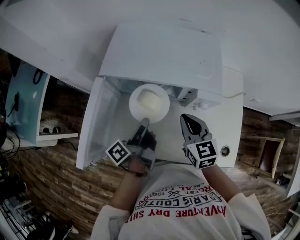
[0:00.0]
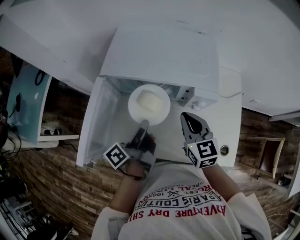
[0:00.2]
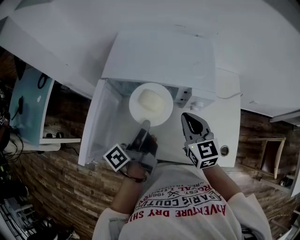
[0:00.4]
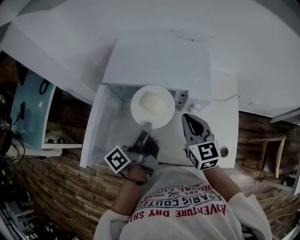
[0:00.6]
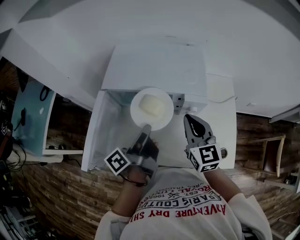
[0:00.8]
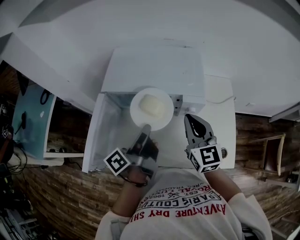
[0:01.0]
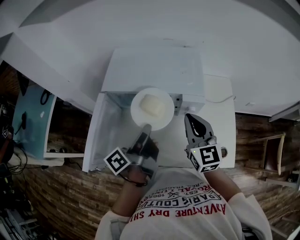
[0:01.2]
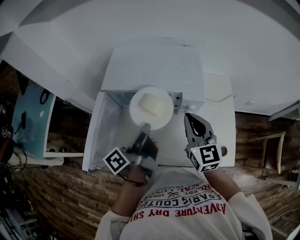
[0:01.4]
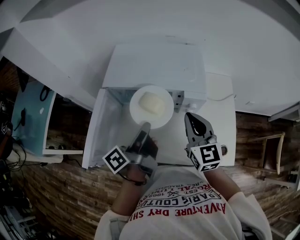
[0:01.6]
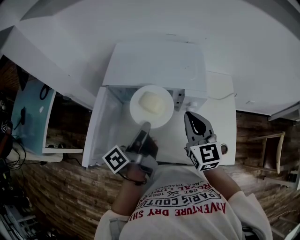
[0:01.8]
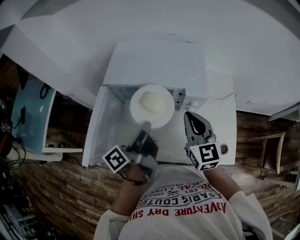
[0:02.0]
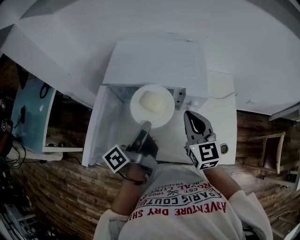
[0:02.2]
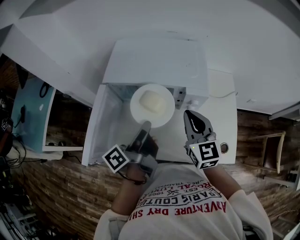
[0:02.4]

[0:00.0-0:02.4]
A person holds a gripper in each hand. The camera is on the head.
0:00.0 to 0:01.2: Both grippers move upward, approximately 10 cm.
0:01.2 to 0:02.4: There are only small adjustments of the grippers.

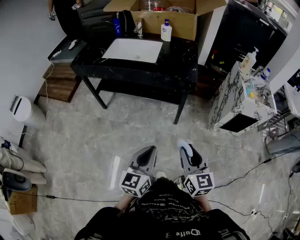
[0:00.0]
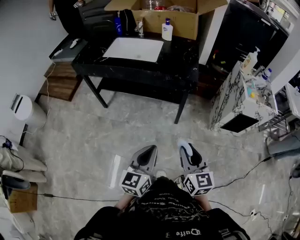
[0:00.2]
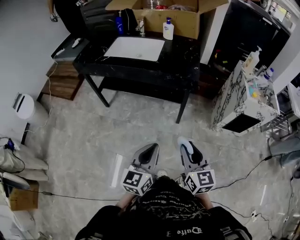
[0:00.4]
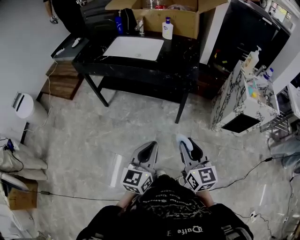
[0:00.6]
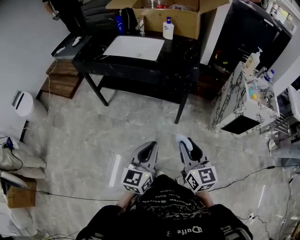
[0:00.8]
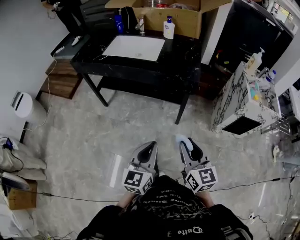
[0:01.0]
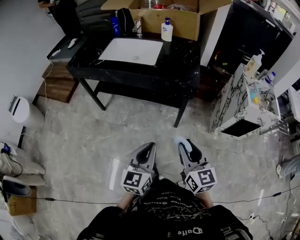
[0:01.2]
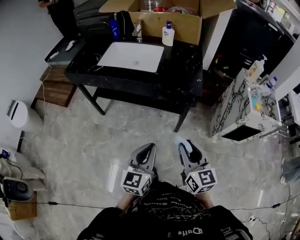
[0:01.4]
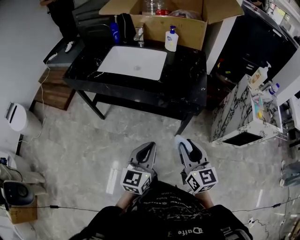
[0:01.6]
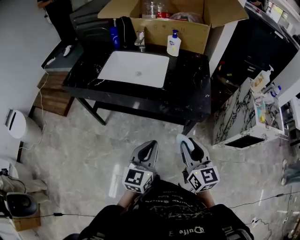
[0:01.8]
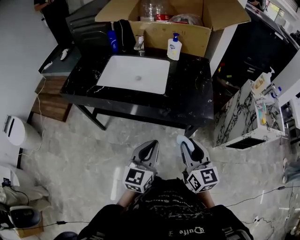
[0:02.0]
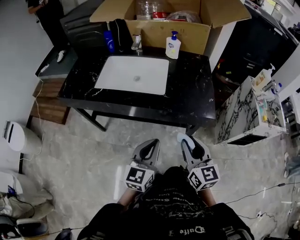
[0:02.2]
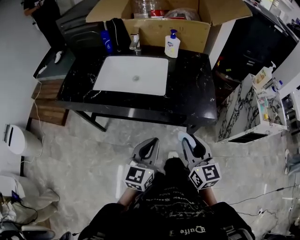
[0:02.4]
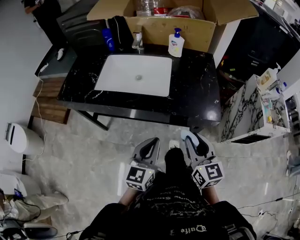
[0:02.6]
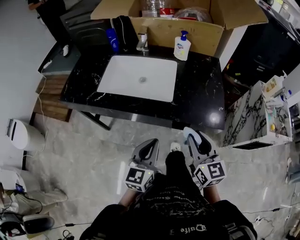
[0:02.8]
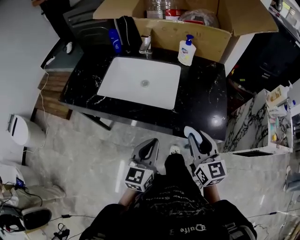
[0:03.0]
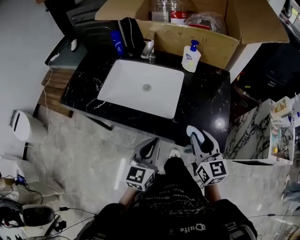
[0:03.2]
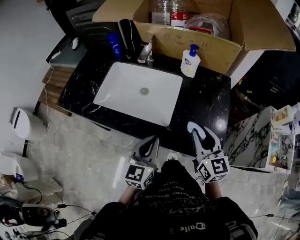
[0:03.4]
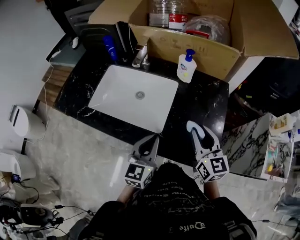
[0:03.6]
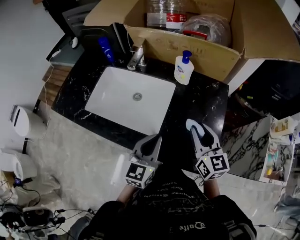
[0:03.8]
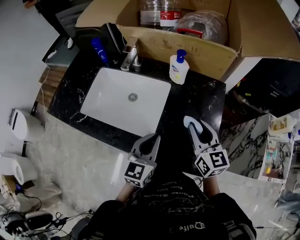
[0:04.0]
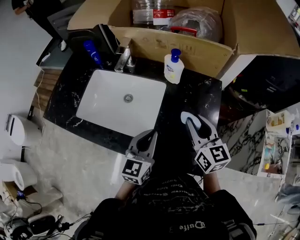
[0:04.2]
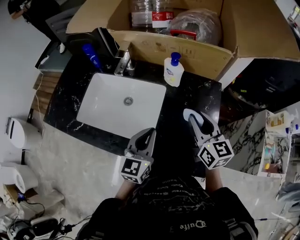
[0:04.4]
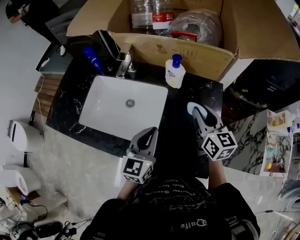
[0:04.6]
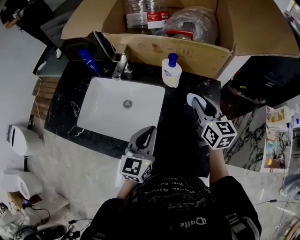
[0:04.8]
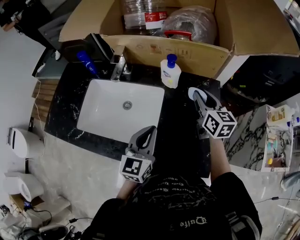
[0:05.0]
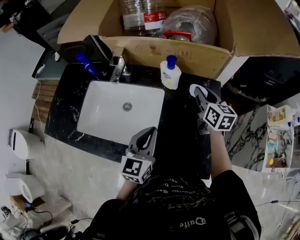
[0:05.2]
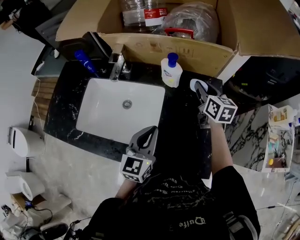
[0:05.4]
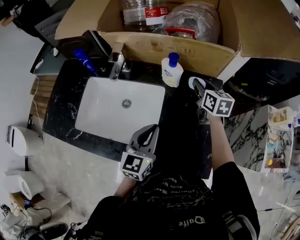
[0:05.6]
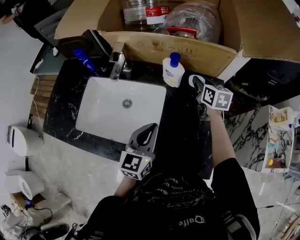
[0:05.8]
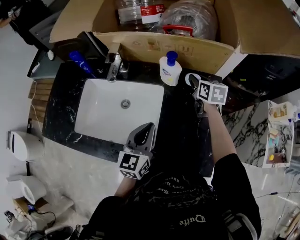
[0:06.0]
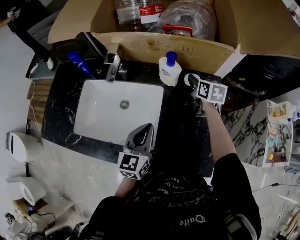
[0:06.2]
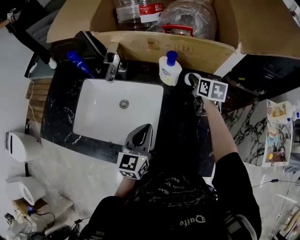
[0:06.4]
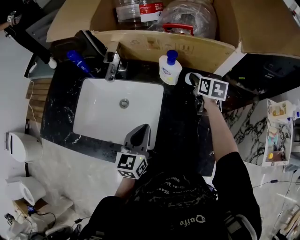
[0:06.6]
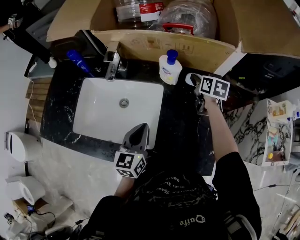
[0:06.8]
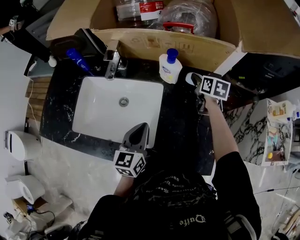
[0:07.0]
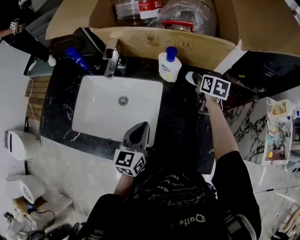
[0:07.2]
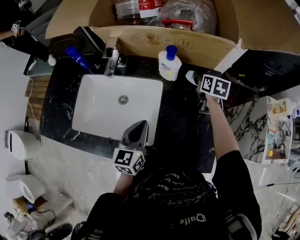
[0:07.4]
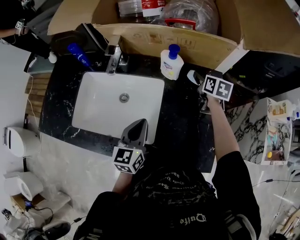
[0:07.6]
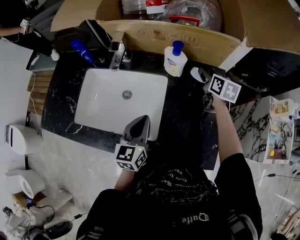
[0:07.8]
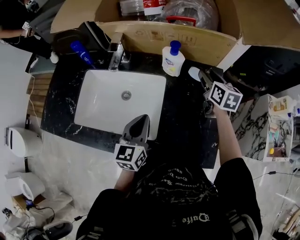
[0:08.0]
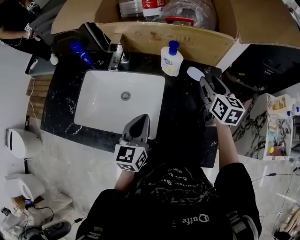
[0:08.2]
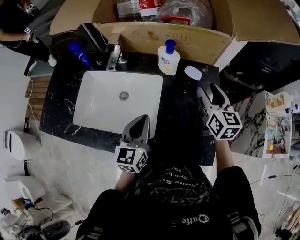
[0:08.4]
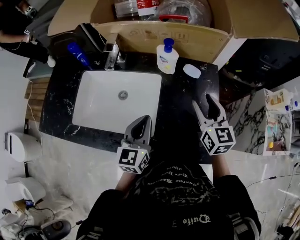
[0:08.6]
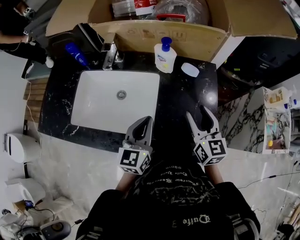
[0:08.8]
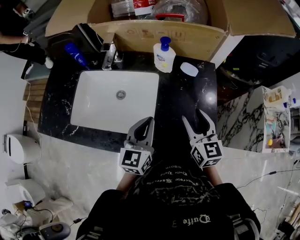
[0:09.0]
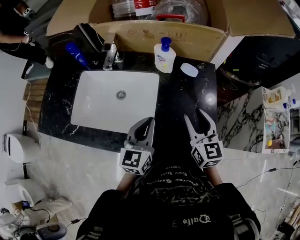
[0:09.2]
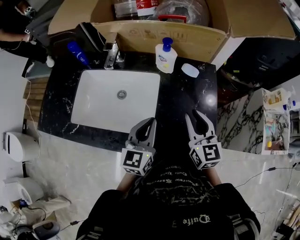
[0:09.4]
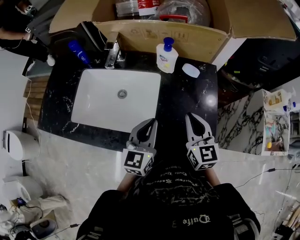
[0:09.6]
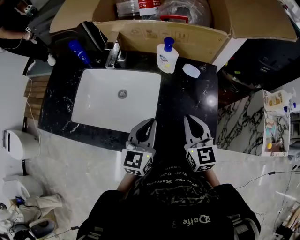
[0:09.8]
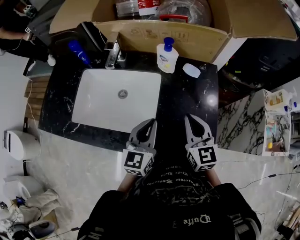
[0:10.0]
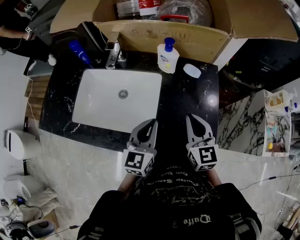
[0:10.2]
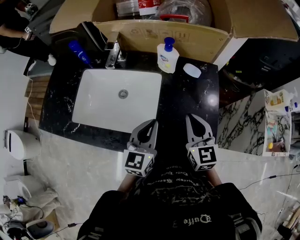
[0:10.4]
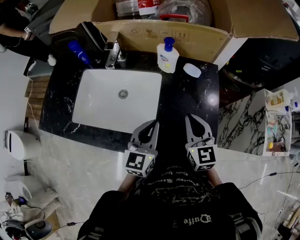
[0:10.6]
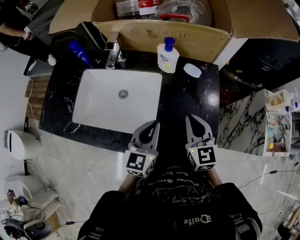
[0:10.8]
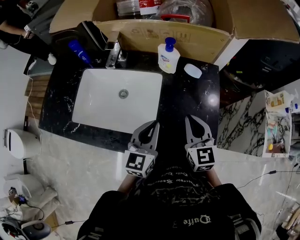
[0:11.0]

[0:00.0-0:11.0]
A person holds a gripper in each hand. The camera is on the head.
0:00.0 to 0:01.6: The two grippers go approximately 20 cm forward.
0:01.6 to 0:03.2: Both grippers travel together forward, about 30 cm.
0:03.2 to 0:04.8: The right gripper heads forward, covering some 25 cm, while the left gripper moves forward and to the right, about 20 cm.
0:04.8 to 0:06.2: The right gripper moves forward and downward, about 15 cm, and rotates about 20 degrees.
0:06.2 to 0:07.8: The right gripper opens up.
0:07.8 to 0:09.4: The right gripper is displaced backward by some 25 cm, rotates approximately 30 degrees, and closes. Meanwhile the left gripper moves about 5 cm.
0:09.4 to 0:11.0: The right gripper closes its fingers.

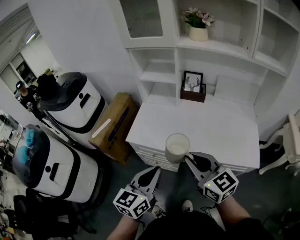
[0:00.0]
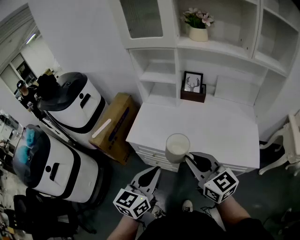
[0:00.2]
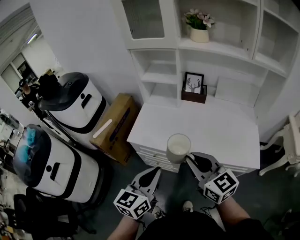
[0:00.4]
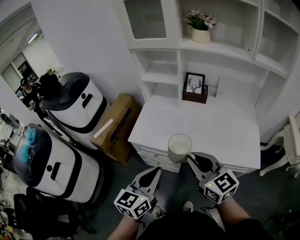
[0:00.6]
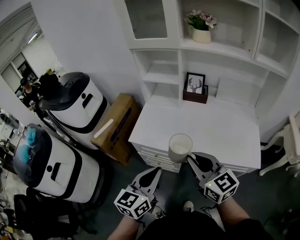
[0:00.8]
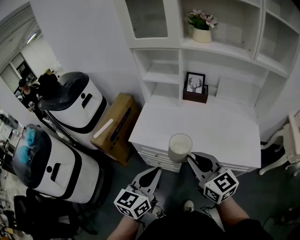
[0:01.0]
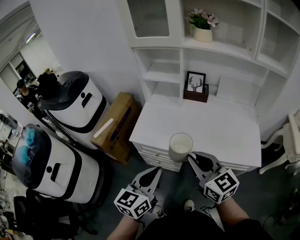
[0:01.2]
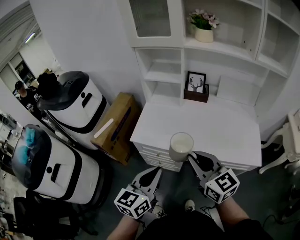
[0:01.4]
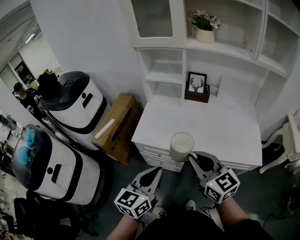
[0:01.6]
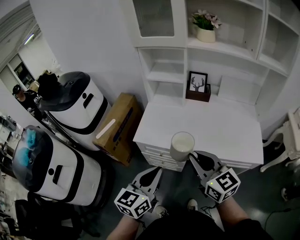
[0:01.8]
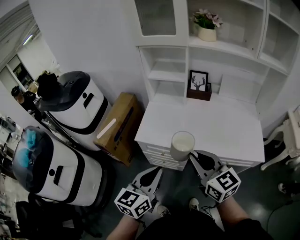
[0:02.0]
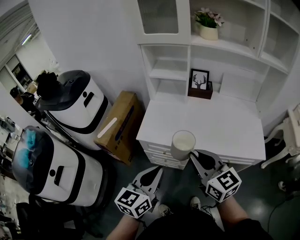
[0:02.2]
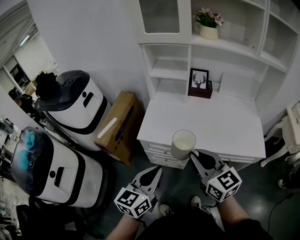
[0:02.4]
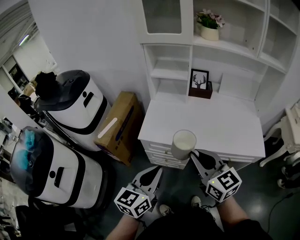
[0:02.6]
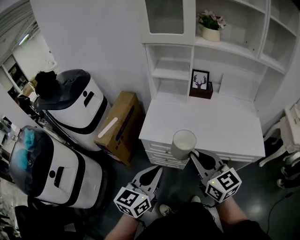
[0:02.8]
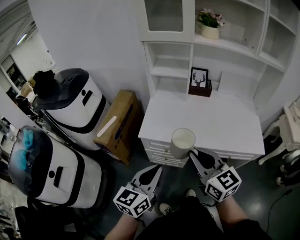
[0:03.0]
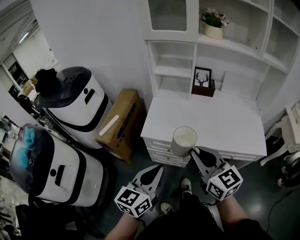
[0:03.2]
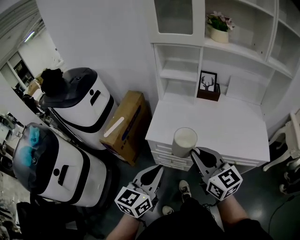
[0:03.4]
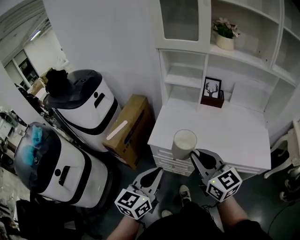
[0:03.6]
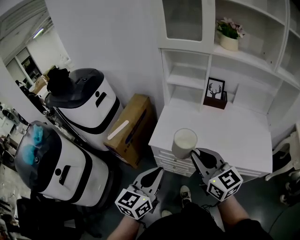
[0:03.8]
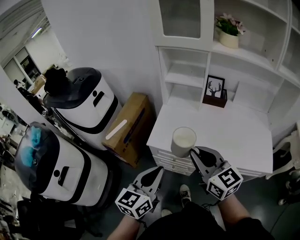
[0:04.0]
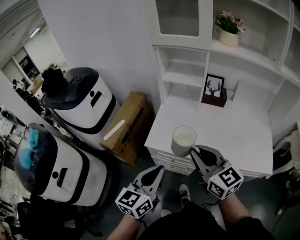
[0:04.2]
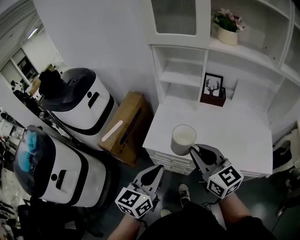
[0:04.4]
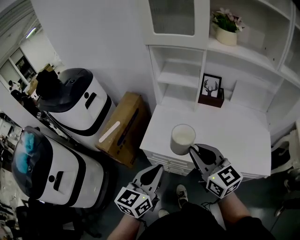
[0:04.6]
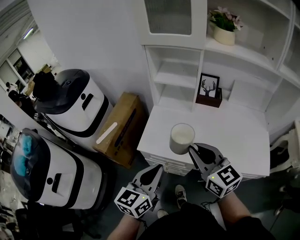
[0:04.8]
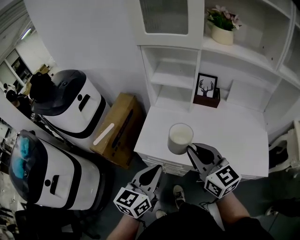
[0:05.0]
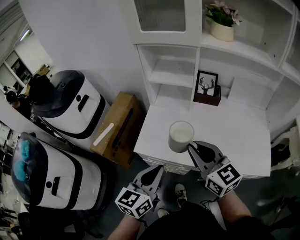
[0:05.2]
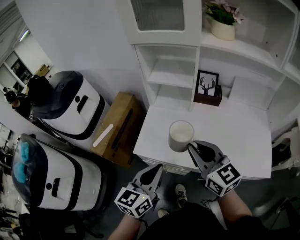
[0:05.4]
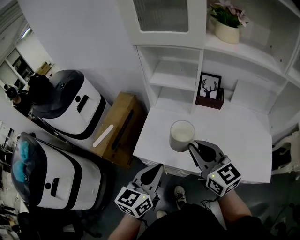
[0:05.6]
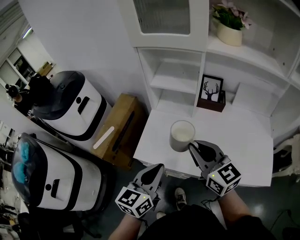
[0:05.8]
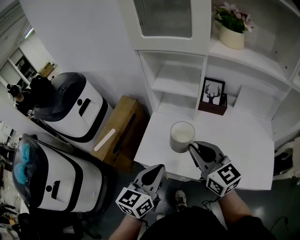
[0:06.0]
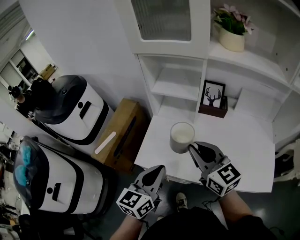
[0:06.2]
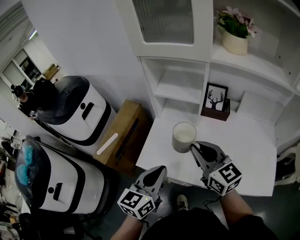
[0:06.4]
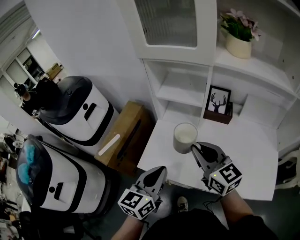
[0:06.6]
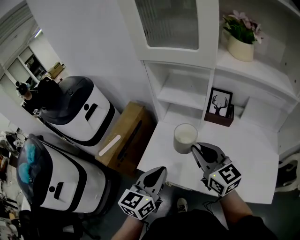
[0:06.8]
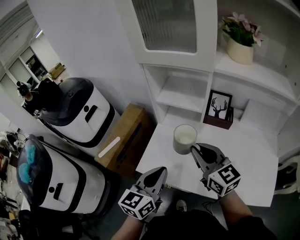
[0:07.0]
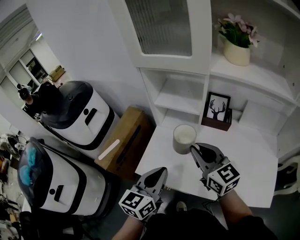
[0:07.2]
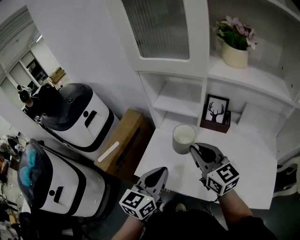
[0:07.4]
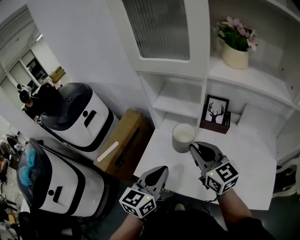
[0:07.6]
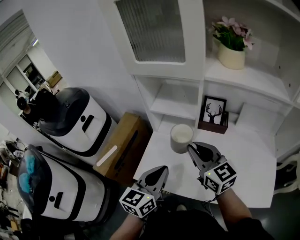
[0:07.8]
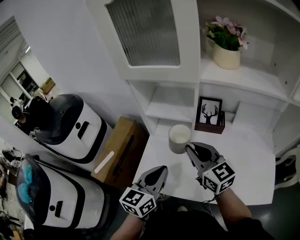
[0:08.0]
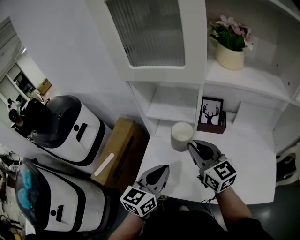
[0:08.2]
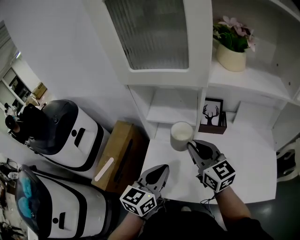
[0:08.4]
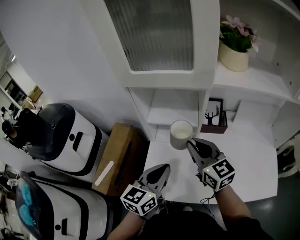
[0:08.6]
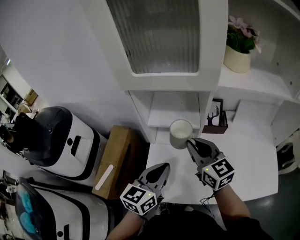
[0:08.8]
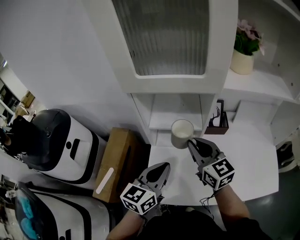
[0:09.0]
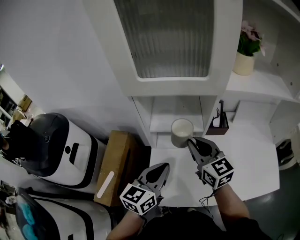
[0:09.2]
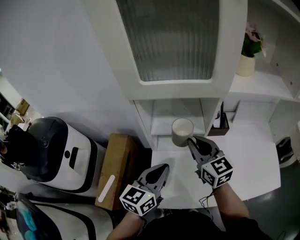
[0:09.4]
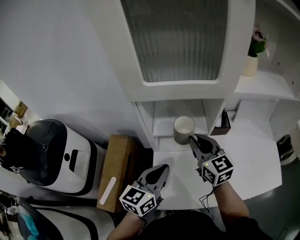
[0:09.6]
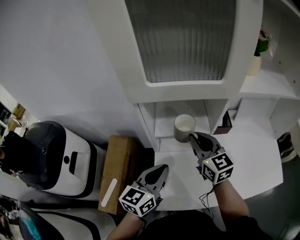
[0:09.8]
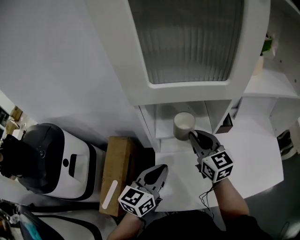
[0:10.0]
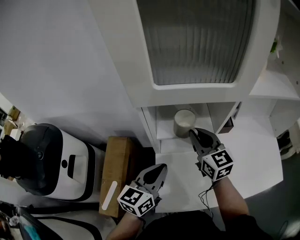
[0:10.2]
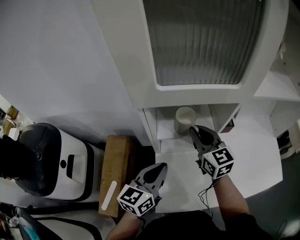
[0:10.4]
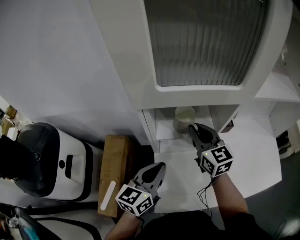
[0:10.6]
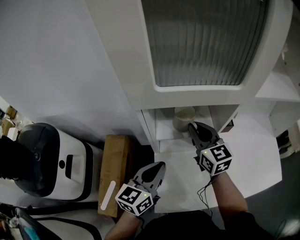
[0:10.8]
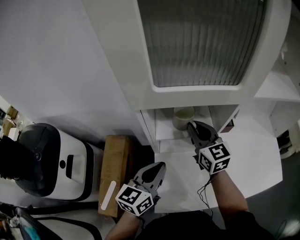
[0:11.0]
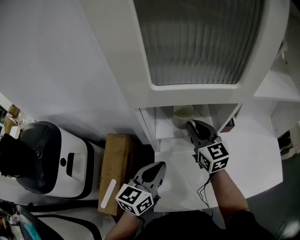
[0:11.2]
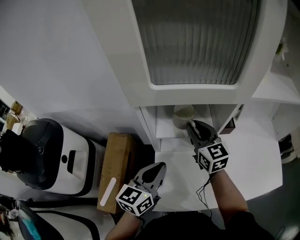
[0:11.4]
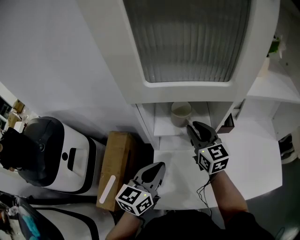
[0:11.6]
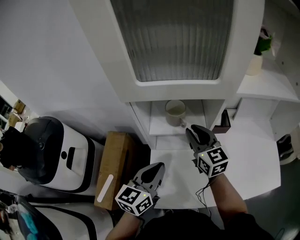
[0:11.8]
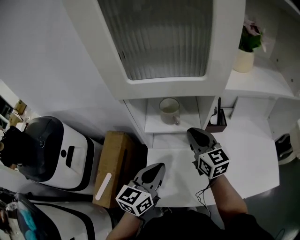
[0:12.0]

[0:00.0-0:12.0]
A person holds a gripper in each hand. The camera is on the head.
0:00.0 to 0:01.6: The grippers stay close to where they were, moving slightly.
0:01.6 to 0:03.0: The grippers both shift to the left by some 10 cm.
0:03.0 to 0:04.4: Both grippers travel together forward, about 10 cm.
0:04.4 to 0:06.0: The right gripper goes some 15 cm forward. Meanwhile the left gripper is displaced forward and to the right by about 15 cm.
0:06.0 to 0:07.6: Both grippers travel together forward, approximately 10 cm.
0:07.6 to 0:09.0: The grippers both shift forward and to the left by some 15 cm.
0:09.0 to 0:10.4: The left gripper heads to the left and forward, covering about 10 cm, while the right gripper heads forward, covering about 10 cm.
0:10.4 to 0:12.0: The two grippers go approximately 5 cm to the right.
